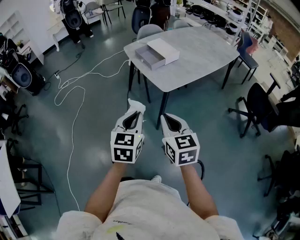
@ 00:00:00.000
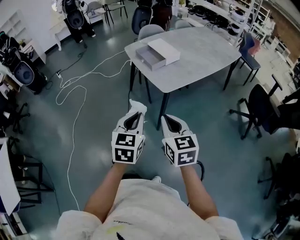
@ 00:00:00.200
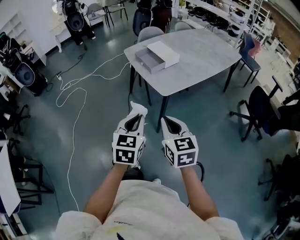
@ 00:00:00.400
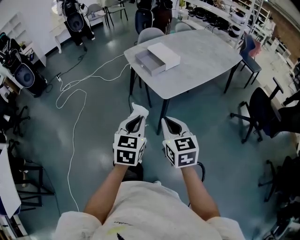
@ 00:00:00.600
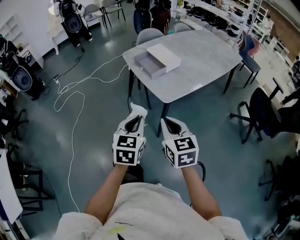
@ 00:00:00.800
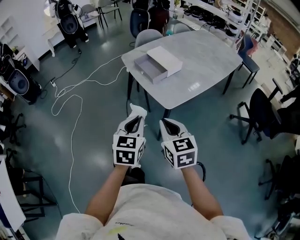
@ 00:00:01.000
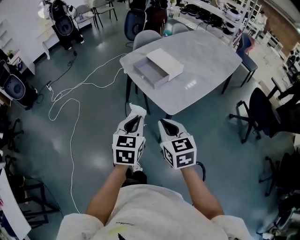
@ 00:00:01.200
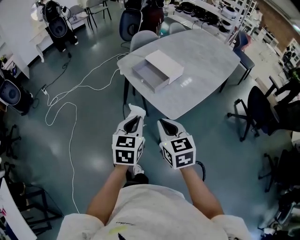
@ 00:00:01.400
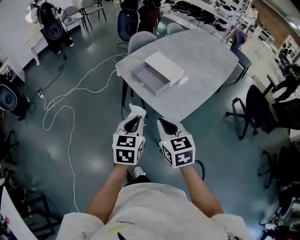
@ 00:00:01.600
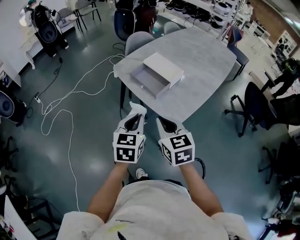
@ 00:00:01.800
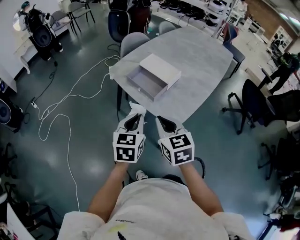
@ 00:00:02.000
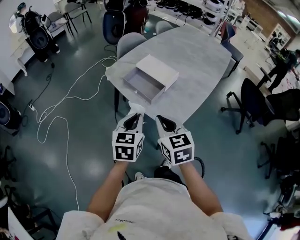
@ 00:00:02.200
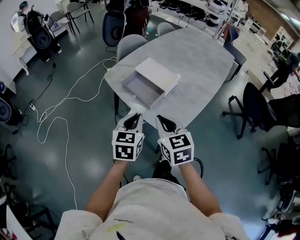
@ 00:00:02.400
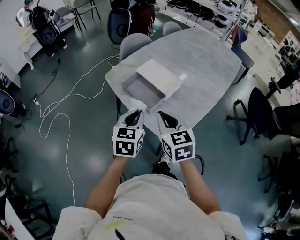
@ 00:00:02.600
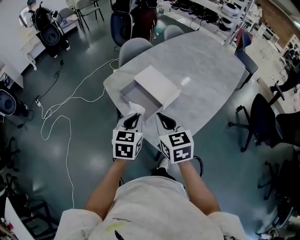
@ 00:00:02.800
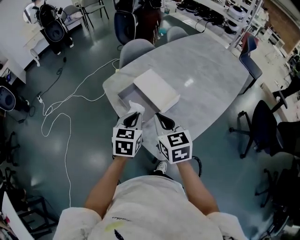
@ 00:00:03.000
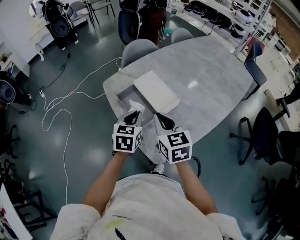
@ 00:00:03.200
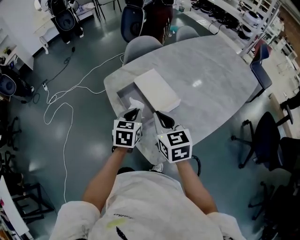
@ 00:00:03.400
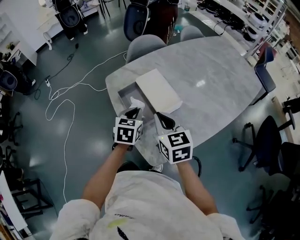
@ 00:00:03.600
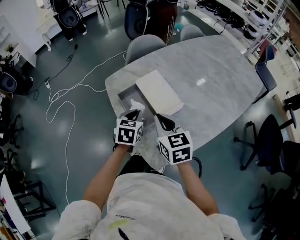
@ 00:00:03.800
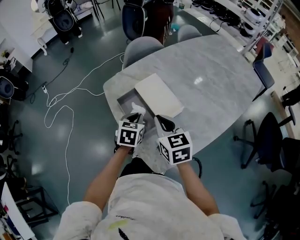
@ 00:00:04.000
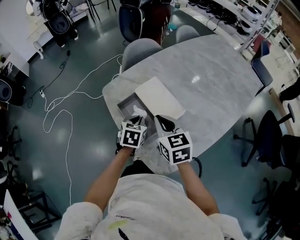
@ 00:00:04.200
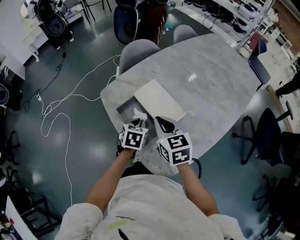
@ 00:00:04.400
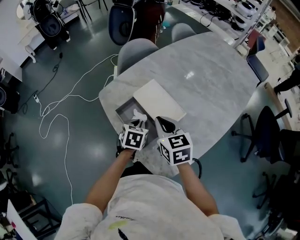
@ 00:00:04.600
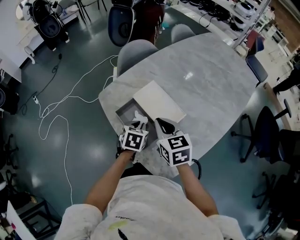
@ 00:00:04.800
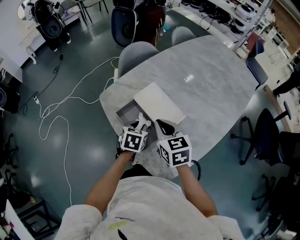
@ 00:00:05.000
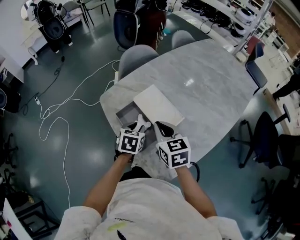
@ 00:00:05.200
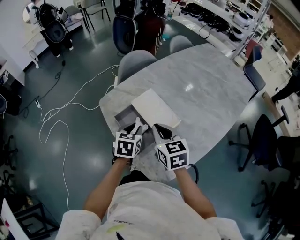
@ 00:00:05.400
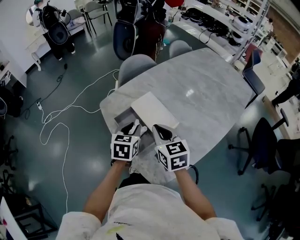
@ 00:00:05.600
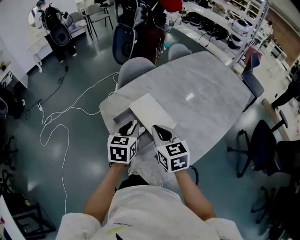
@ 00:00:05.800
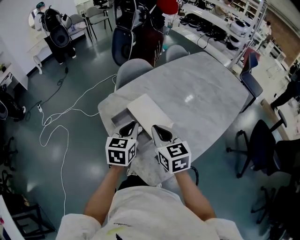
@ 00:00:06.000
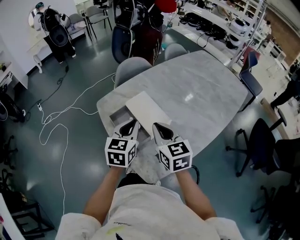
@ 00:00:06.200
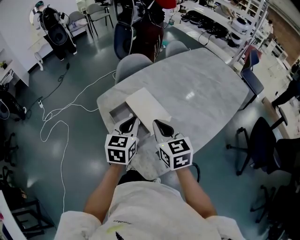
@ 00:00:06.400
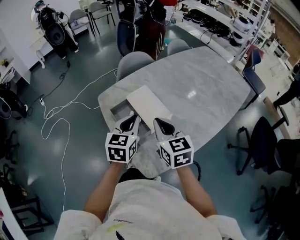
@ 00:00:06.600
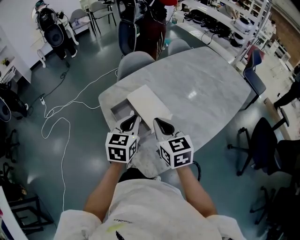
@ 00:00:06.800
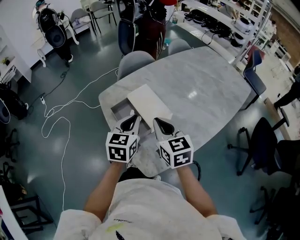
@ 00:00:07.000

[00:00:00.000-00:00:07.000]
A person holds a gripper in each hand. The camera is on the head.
00:00:00.000 to 00:00:01.400: The grippers both shift forward by some 20 cm.
00:00:01.400 to 00:00:02.800: Both grippers move forward, some 25 cm.
00:00:02.800 to 00:00:04.200: The right gripper shifts some 15 cm forward; the left gripper is displaced forward and downward by roughly 15 cm.
00:00:04.200 to 00:00:05.600: The left gripper heads upward, covering some 5 cm.
00:00:05.600 to 00:00:07.000: The left gripper goes roughly 10 cm upward and backward. Meanwhile the right gripper moves about 5 cm.

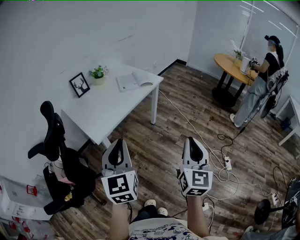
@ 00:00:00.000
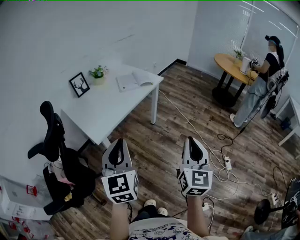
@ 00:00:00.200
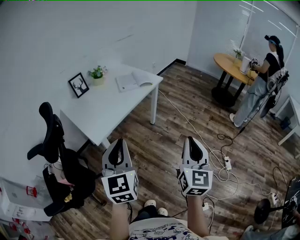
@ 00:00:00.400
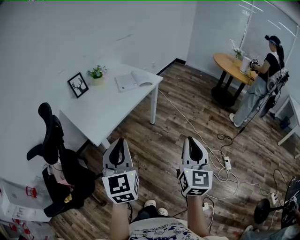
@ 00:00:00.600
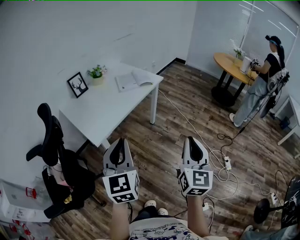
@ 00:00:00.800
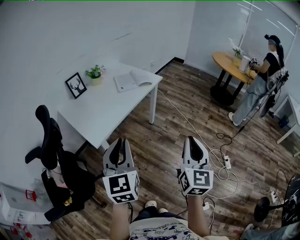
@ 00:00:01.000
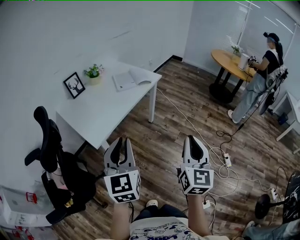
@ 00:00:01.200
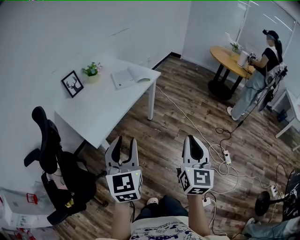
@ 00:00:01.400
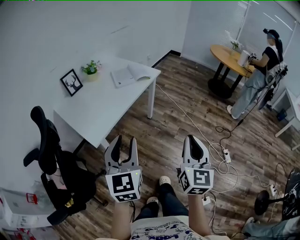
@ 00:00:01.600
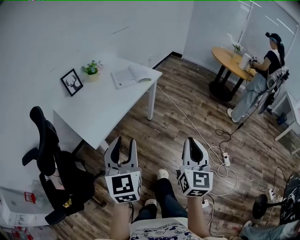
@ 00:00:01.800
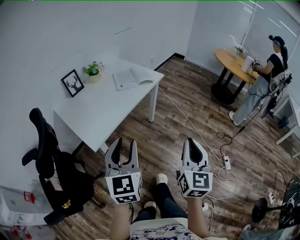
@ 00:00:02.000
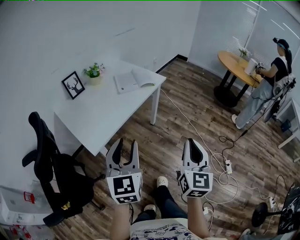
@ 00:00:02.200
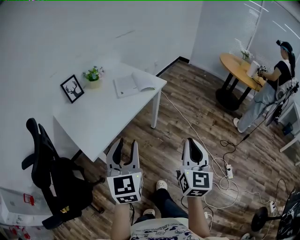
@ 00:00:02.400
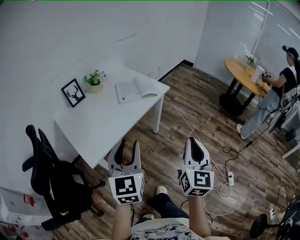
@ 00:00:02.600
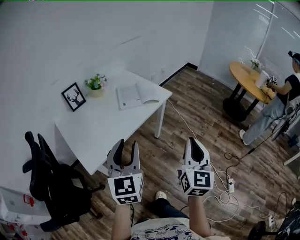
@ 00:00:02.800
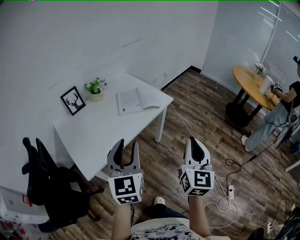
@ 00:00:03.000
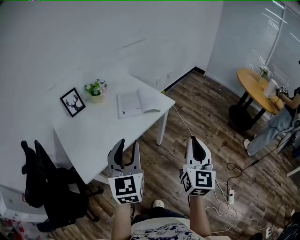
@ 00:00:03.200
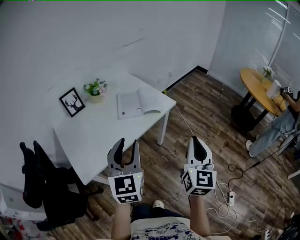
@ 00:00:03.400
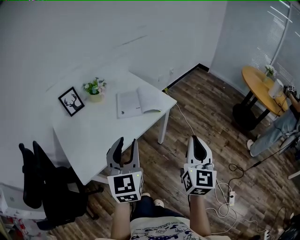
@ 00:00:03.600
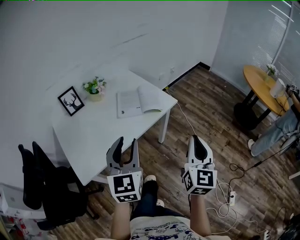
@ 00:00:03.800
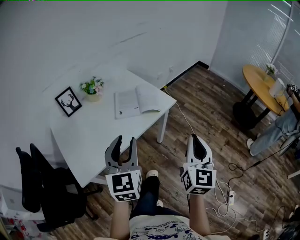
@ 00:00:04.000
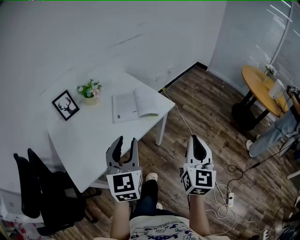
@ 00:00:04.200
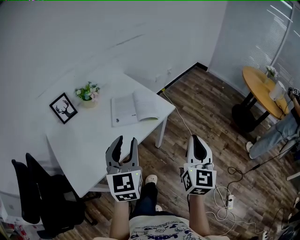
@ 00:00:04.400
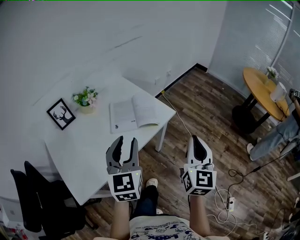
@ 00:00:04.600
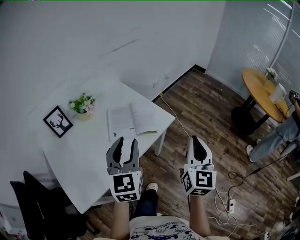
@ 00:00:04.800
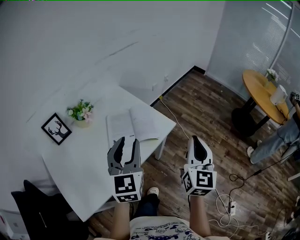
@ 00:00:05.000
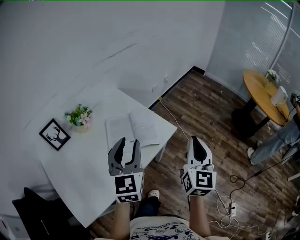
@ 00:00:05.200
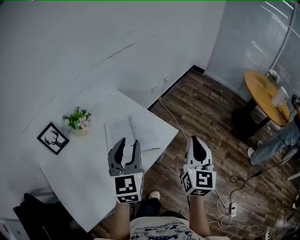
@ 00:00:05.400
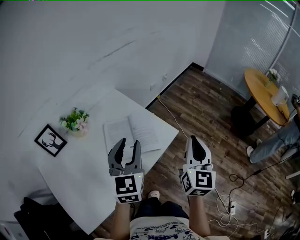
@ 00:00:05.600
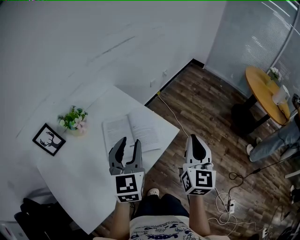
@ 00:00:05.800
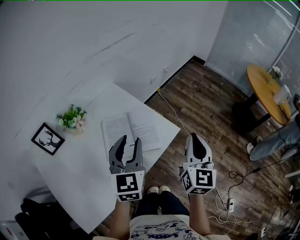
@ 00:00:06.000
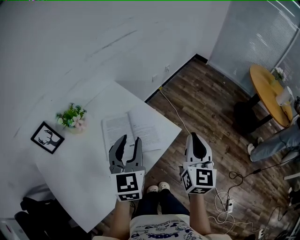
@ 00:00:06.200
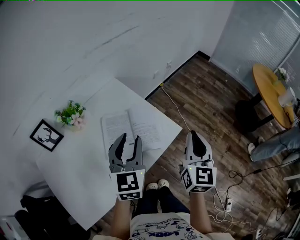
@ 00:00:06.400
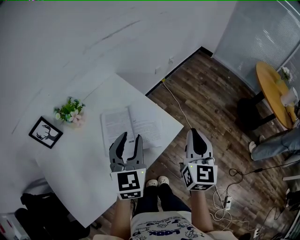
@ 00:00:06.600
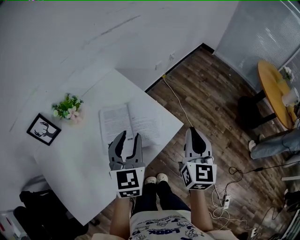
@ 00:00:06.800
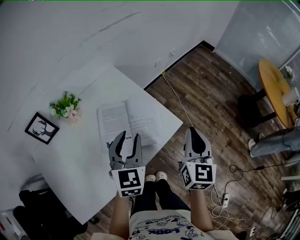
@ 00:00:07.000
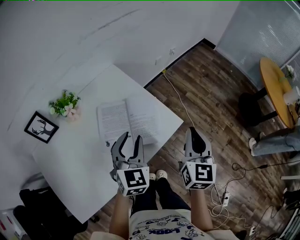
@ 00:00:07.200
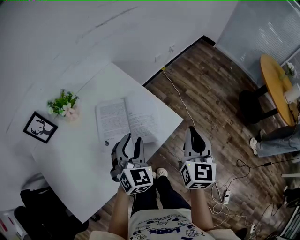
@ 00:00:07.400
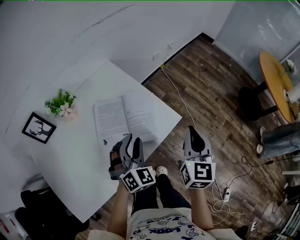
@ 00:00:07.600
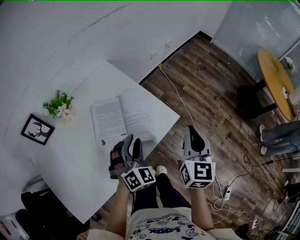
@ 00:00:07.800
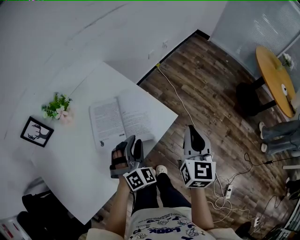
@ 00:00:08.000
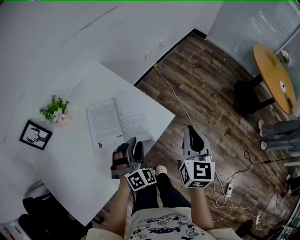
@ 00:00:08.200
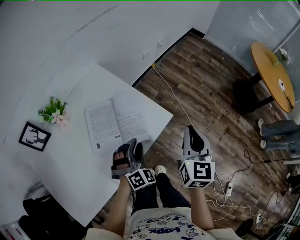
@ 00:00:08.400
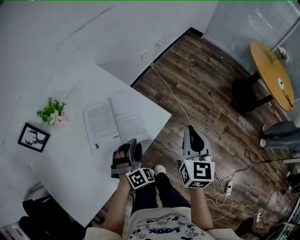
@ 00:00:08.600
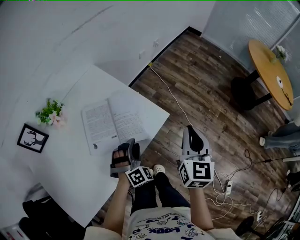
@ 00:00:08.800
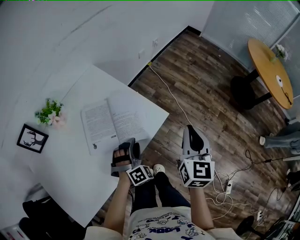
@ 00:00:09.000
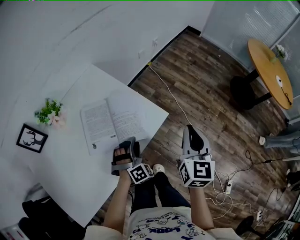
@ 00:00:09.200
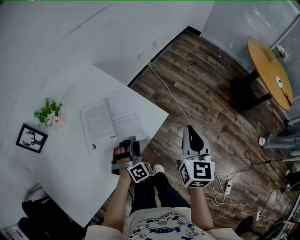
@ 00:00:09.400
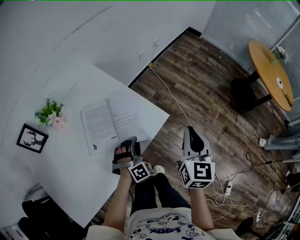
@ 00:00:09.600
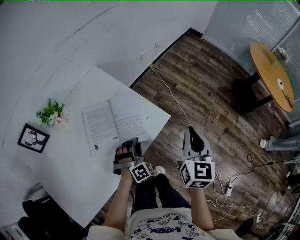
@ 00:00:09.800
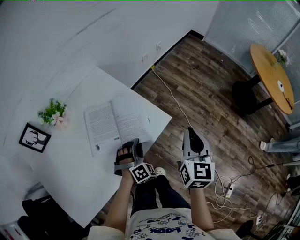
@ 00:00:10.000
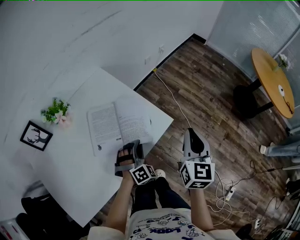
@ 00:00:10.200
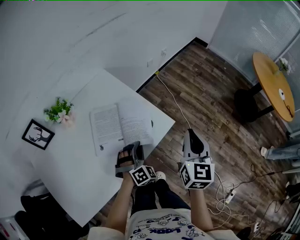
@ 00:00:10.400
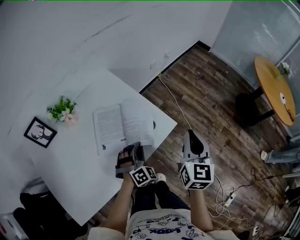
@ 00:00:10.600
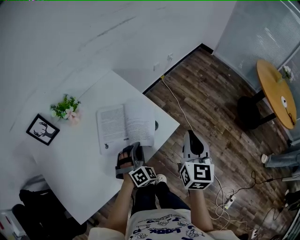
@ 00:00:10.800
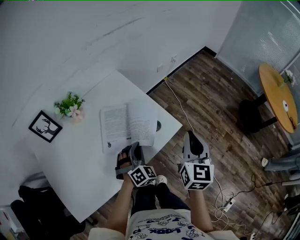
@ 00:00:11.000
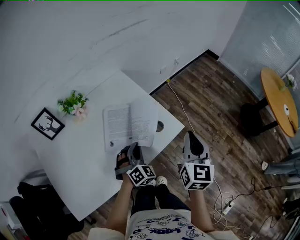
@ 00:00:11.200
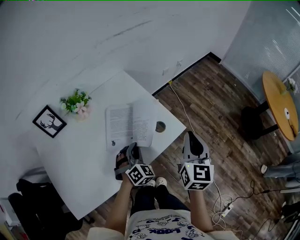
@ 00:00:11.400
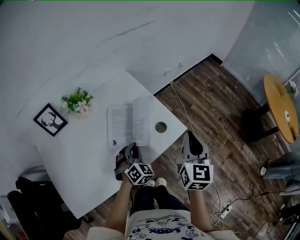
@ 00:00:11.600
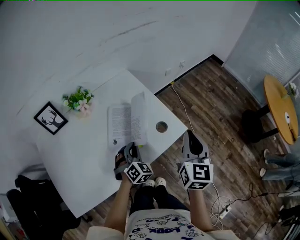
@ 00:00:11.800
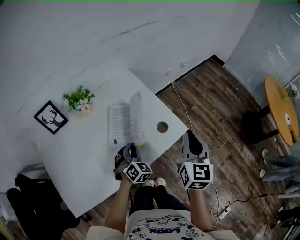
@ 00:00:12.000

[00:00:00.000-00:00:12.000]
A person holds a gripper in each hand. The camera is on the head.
00:00:00.000 to 00:00:01.600: The left gripper goes about 5 cm forward, and opens, while the right gripper changes place by approximately 5 cm.
00:00:01.600 to 00:00:03.000: Both grippers travel together forward, about 25 cm.
00:00:03.000 to 00:00:04.400: The grippers both shift forward by approximately 15 cm.
00:00:04.400 to 00:00:06.000: The two grippers go some 25 cm forward.
00:00:06.000 to 00:00:07.600: The left gripper shifts some 15 cm downward, and turns by some 40 degrees. The right gripper goes roughly 10 cm downward and forward.
00:00:07.600 to 00:00:09.000: The left gripper is displaced downward and to the right by roughly 15 cm, and changes its angle by about 30 degrees, while the right gripper moves to the right, some 5 cm.
00:00:09.000 to 00:00:10.400: The left gripper closes.
00:00:10.400 to 00:00:12.000: Both grippers move to the left, approximately 10 cm. The left gripper swivels some 30 degrees.

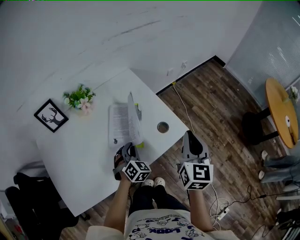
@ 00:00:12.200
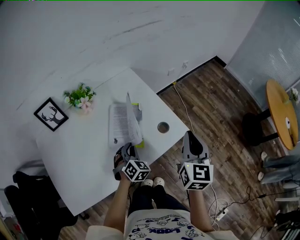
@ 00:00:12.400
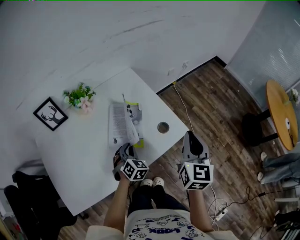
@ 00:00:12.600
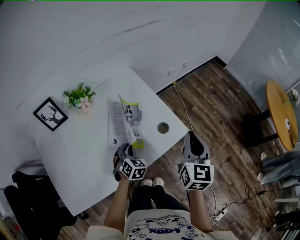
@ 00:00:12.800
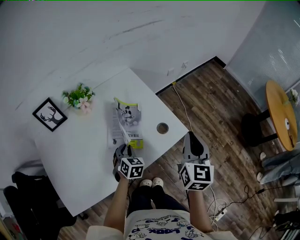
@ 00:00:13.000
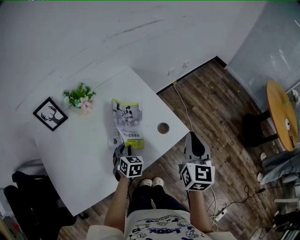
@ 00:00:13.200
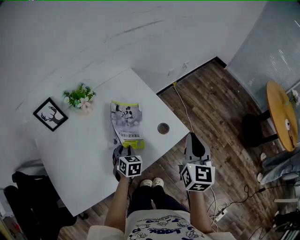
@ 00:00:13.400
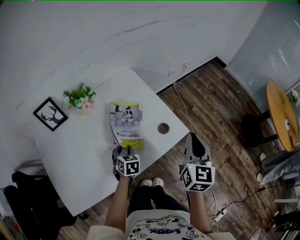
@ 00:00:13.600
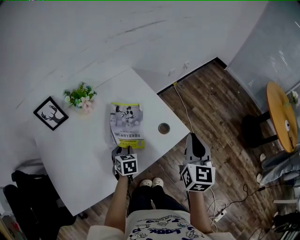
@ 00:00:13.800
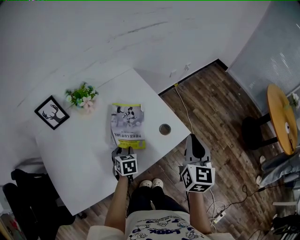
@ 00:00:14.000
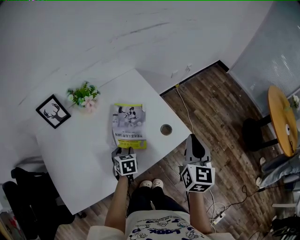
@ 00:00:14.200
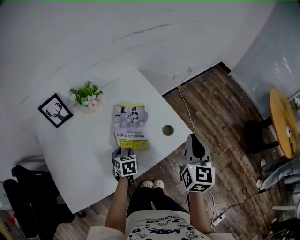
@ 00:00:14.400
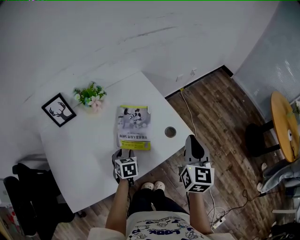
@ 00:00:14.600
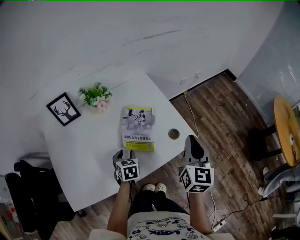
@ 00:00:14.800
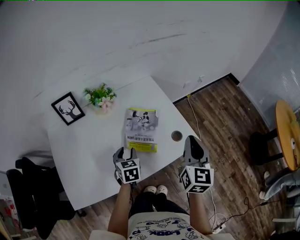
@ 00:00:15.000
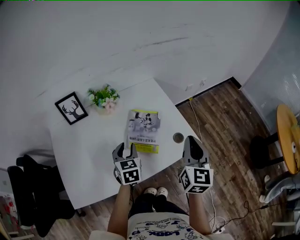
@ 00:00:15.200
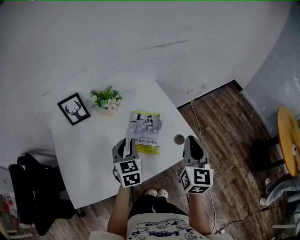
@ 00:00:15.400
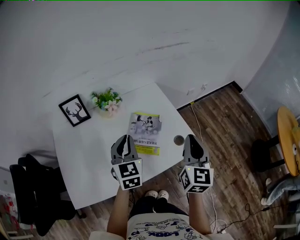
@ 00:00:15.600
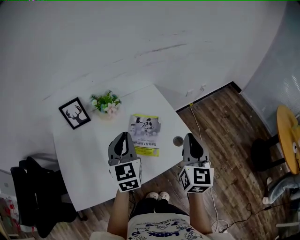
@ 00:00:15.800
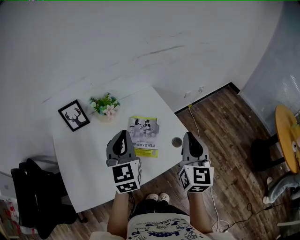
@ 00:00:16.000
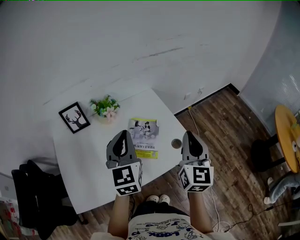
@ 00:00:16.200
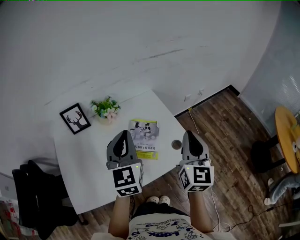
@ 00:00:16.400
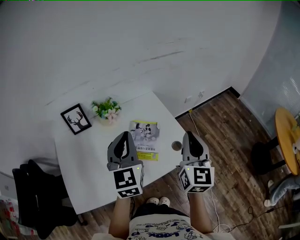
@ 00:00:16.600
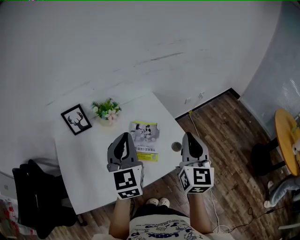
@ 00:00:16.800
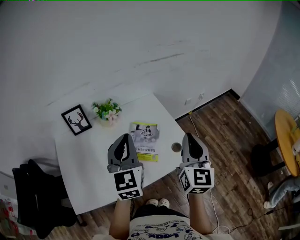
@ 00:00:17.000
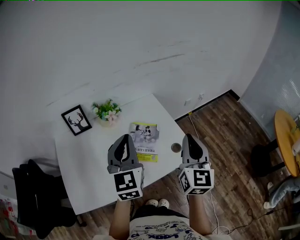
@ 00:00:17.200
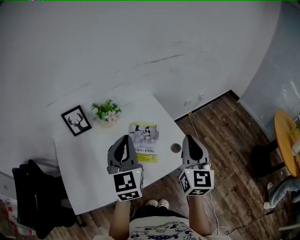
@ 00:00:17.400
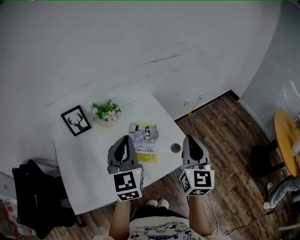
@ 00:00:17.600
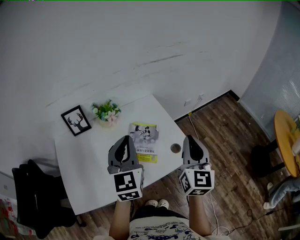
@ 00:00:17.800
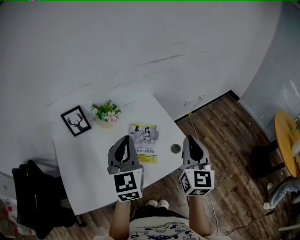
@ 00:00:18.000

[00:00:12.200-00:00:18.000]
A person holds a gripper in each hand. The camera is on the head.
00:00:12.200 to 00:00:13.600: The left gripper moves about 5 cm, rotates approximately 30 degrees, and opens its fingers.
00:00:13.600 to 00:00:15.000: The right gripper travels to the left by roughly 5 cm, while the left gripper heads upward and to the left, covering about 10 cm.
00:00:15.000 to 00:00:16.600: The left gripper shifts some 30 cm upward, tilts its fingers roughly 40 degrees upward, and closes its fingers. Meanwhile the right gripper travels upward by approximately 10 cm.
00:00:16.600 to 00:00:18.000: Neither gripper changes place.
